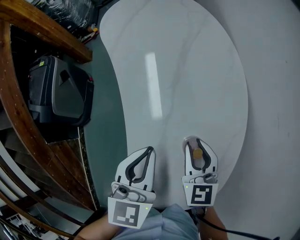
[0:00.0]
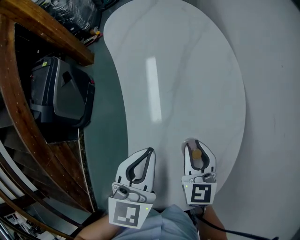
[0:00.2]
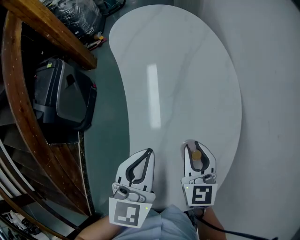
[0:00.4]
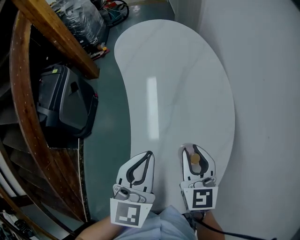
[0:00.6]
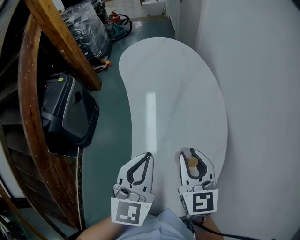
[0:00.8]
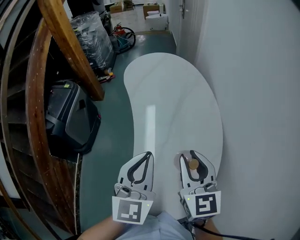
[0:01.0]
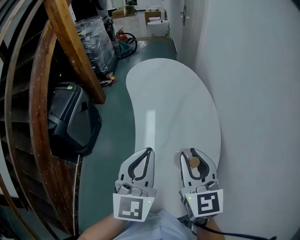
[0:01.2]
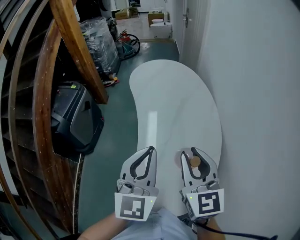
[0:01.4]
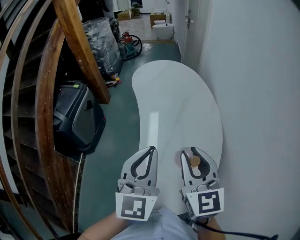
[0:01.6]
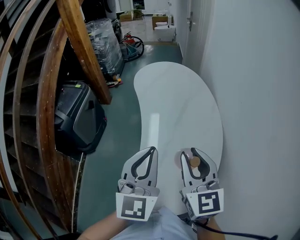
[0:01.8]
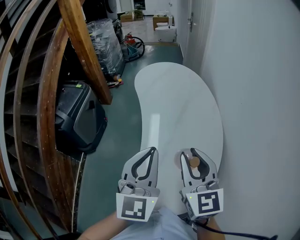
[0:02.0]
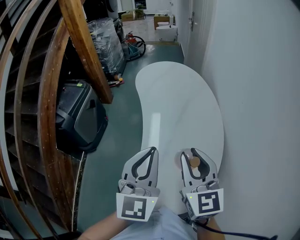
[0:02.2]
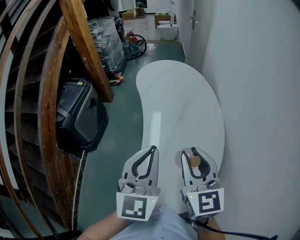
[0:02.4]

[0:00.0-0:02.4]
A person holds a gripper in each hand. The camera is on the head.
0:00.0 to 0:01.2: Both grippers move upward, some 15 cm. The left gripper changes its angle by approximately 30 degrees.
0:01.2 to 0:02.4: There are only small adjustments of the grippers.

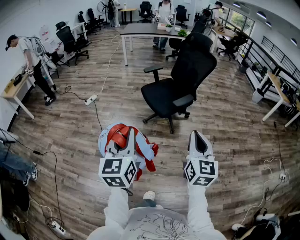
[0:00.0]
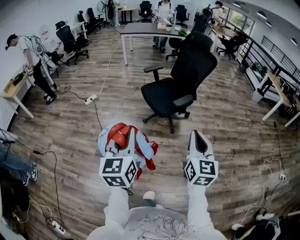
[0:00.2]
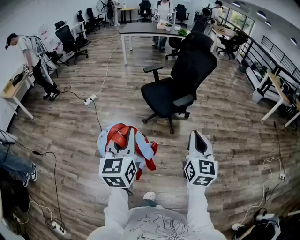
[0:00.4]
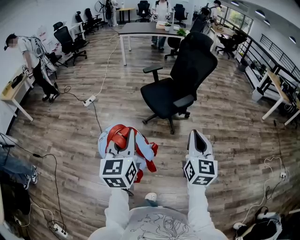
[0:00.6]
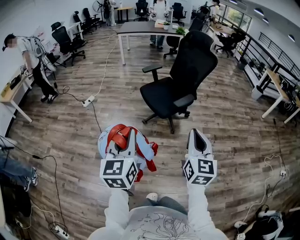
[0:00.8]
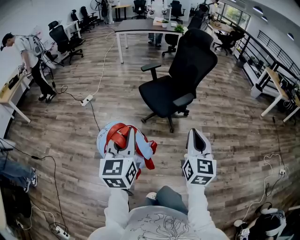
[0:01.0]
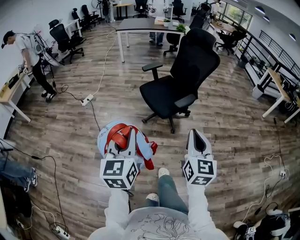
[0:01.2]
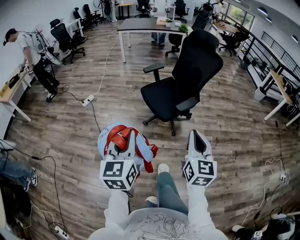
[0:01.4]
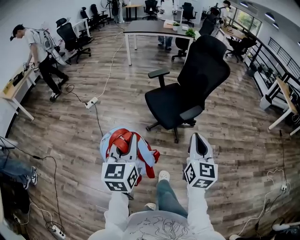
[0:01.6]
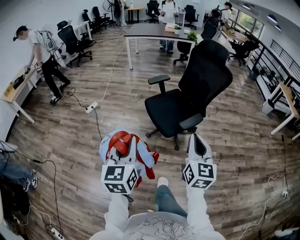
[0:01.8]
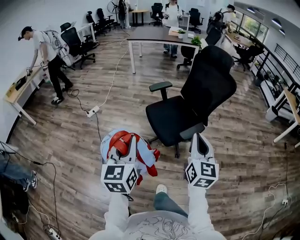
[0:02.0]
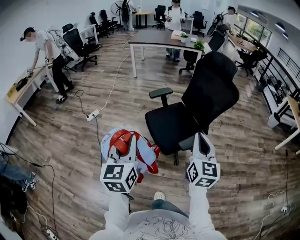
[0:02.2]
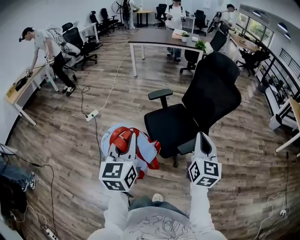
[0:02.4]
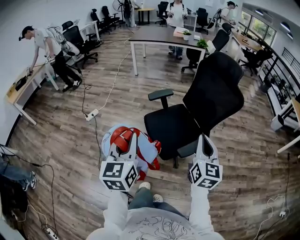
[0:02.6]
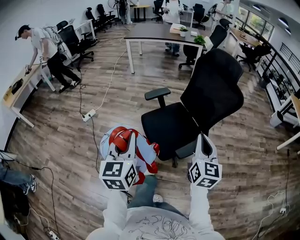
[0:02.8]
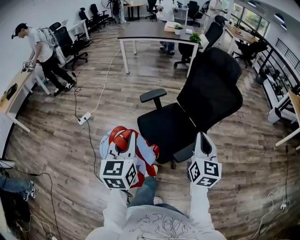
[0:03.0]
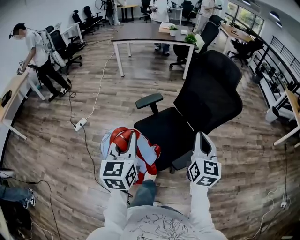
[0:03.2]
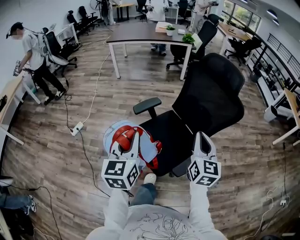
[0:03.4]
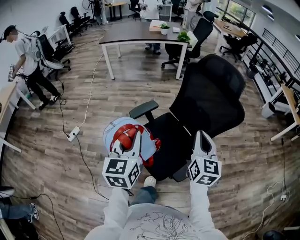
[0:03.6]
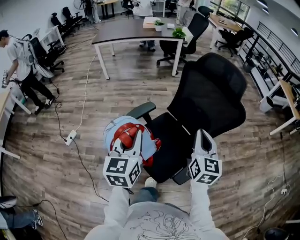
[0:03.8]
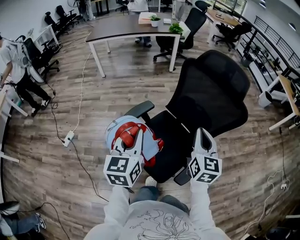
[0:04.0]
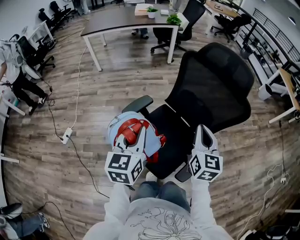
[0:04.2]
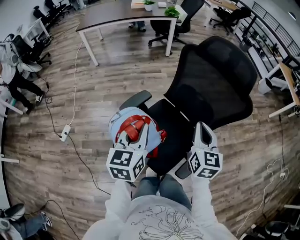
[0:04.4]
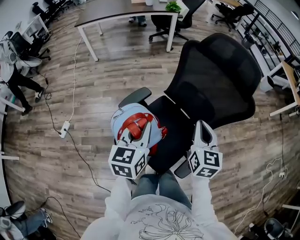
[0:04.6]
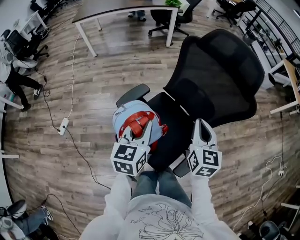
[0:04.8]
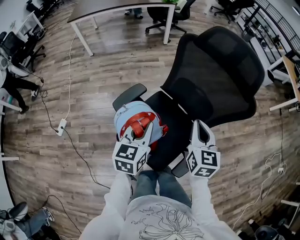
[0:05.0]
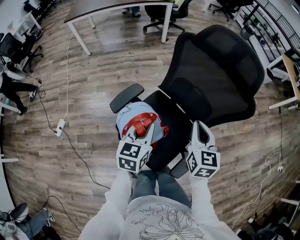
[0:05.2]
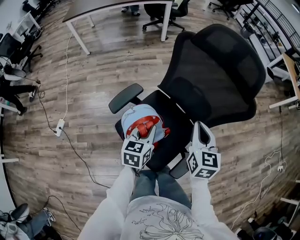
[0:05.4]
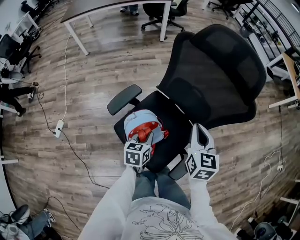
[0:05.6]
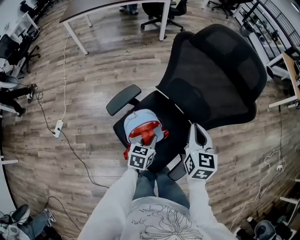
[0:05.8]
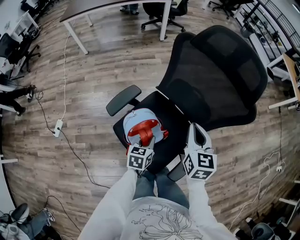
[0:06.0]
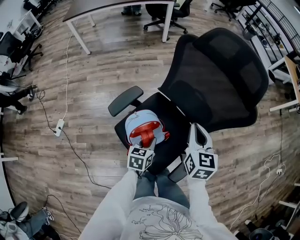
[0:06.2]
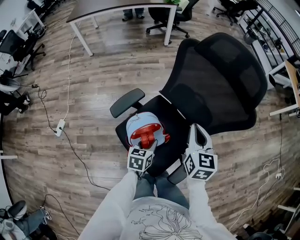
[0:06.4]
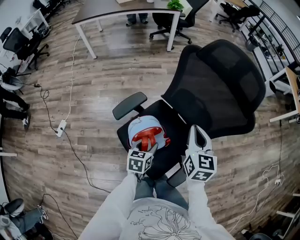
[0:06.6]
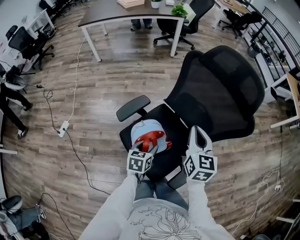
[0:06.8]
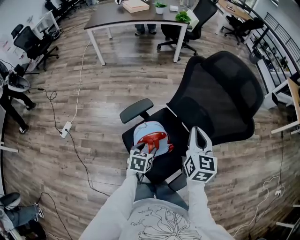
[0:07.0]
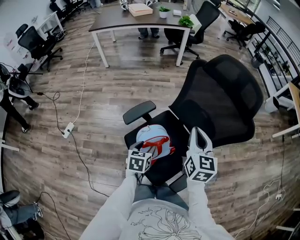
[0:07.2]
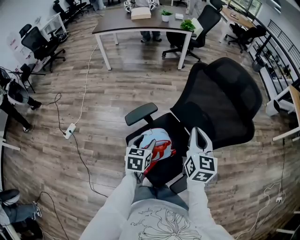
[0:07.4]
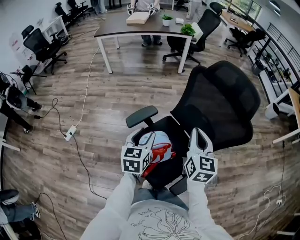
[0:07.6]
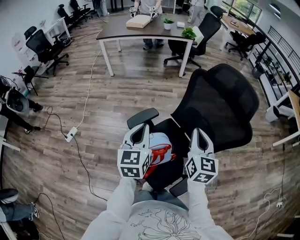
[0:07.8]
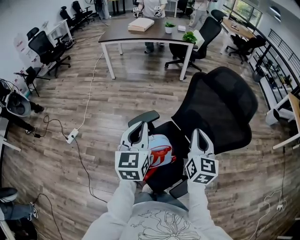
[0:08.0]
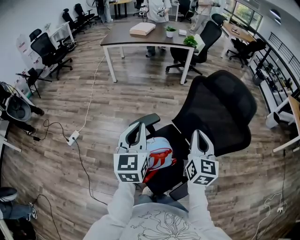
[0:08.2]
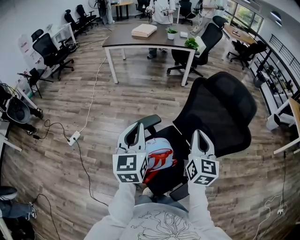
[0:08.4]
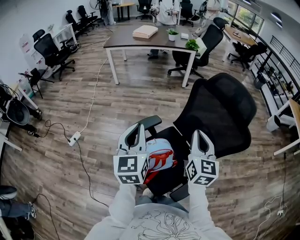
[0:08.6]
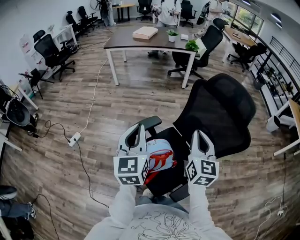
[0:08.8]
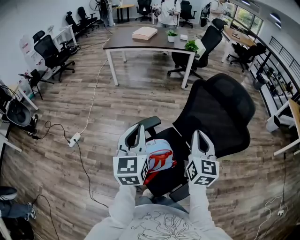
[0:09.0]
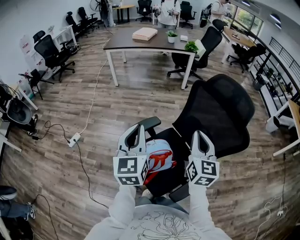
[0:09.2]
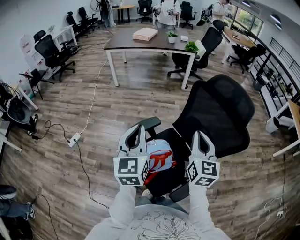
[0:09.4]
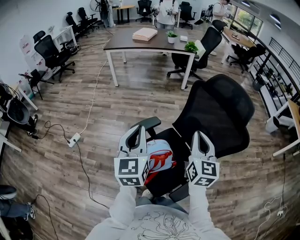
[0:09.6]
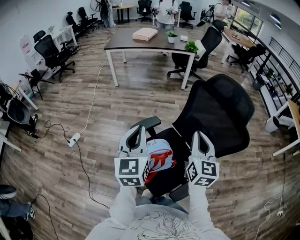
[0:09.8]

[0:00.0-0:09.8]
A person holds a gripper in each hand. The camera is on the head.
0:00.0 to 0:01.4: Both grippers move forward, some 10 cm.
0:01.4 to 0:02.8: Both grippers move forward, about 35 cm.
0:02.8 to 0:04.2: Both grippers travel together forward, approximately 30 cm. The left gripper changes its angle by about 20 degrees.
0:04.2 to 0:05.6: The right gripper travels downward and forward by about 10 cm; the left gripper goes roughly 25 cm downward, and swivels approximately 30 degrees.
0:05.6 to 0:07.0: The right gripper travels upward by about 5 cm; the left gripper opens up.
0:07.0 to 0:08.4: The right gripper travels upward by roughly 10 cm. The left gripper moves upward, some 30 cm, points its fingers some 40 degrees further upward, and closes its fingers.
0:08.4 to 0:09.8: The grippers move only a little.

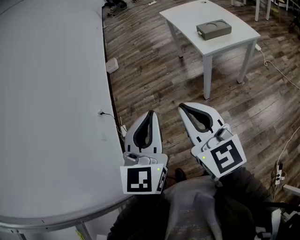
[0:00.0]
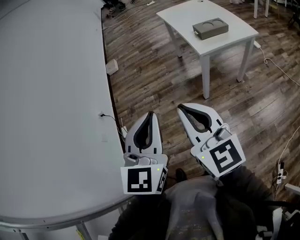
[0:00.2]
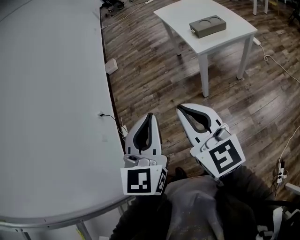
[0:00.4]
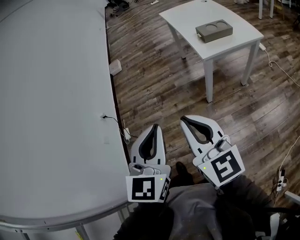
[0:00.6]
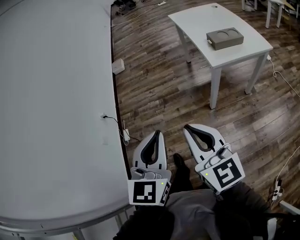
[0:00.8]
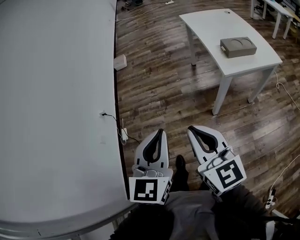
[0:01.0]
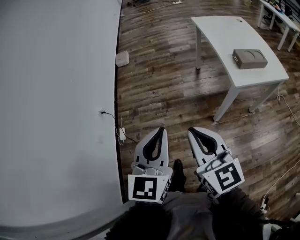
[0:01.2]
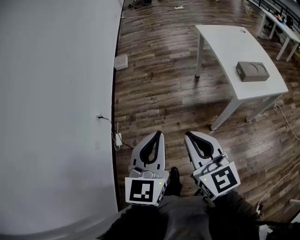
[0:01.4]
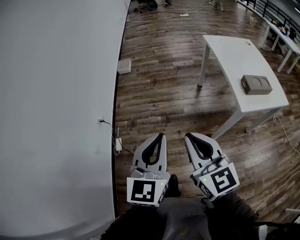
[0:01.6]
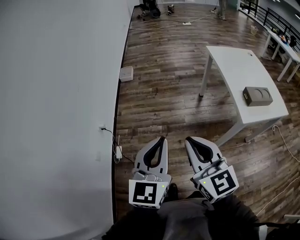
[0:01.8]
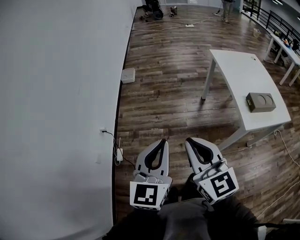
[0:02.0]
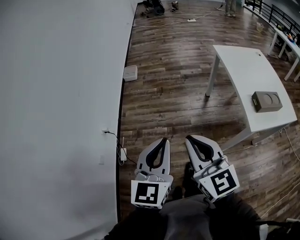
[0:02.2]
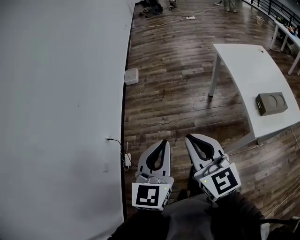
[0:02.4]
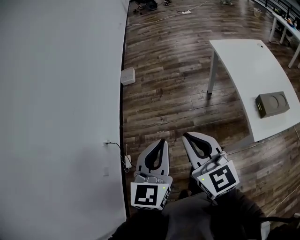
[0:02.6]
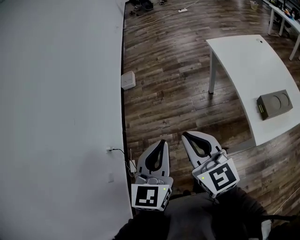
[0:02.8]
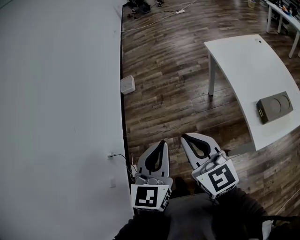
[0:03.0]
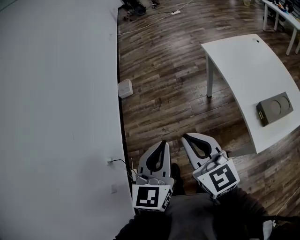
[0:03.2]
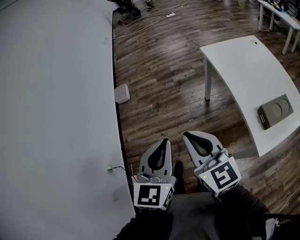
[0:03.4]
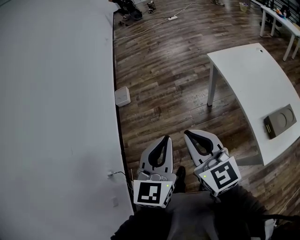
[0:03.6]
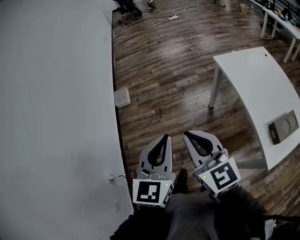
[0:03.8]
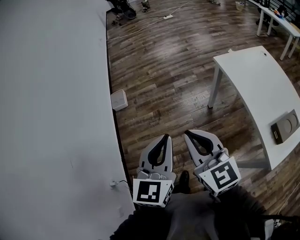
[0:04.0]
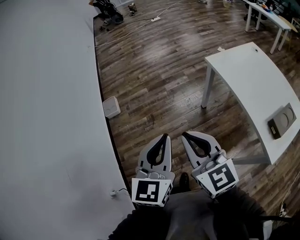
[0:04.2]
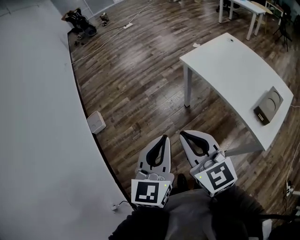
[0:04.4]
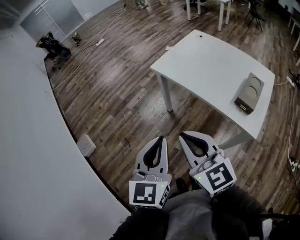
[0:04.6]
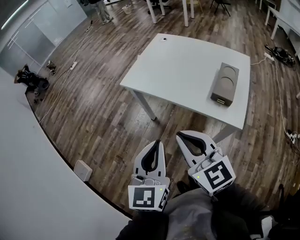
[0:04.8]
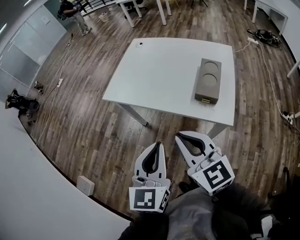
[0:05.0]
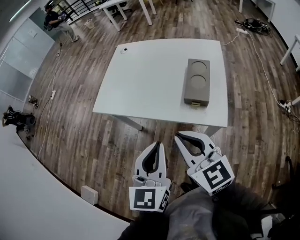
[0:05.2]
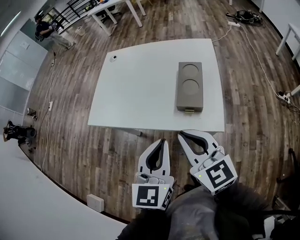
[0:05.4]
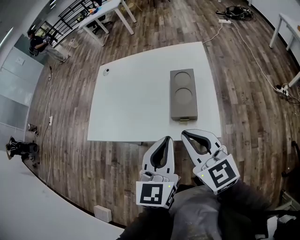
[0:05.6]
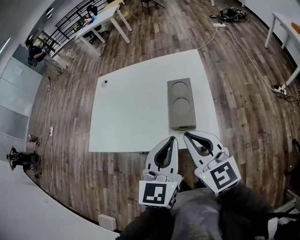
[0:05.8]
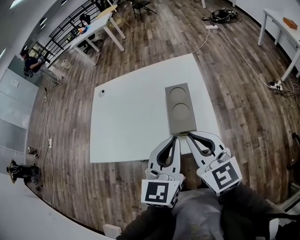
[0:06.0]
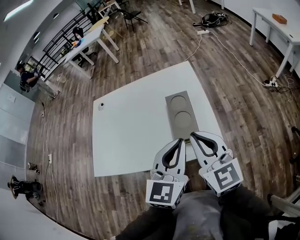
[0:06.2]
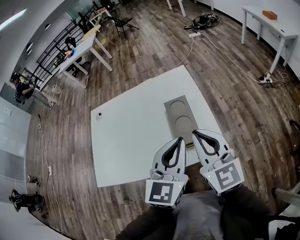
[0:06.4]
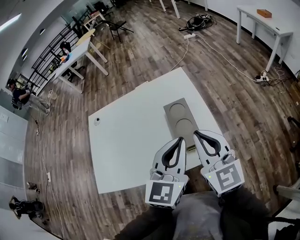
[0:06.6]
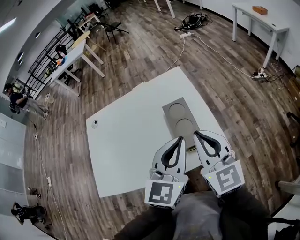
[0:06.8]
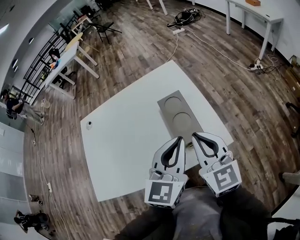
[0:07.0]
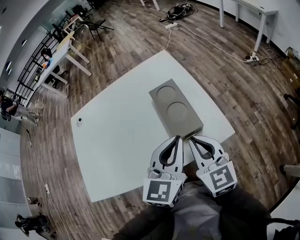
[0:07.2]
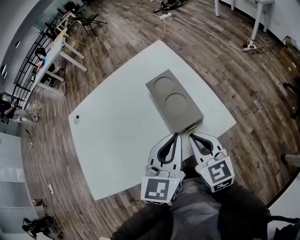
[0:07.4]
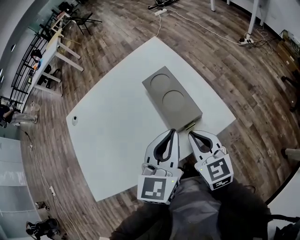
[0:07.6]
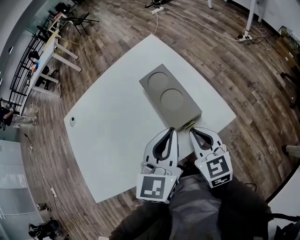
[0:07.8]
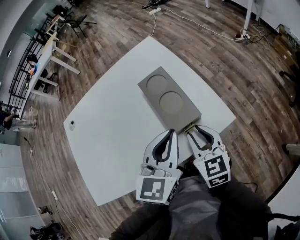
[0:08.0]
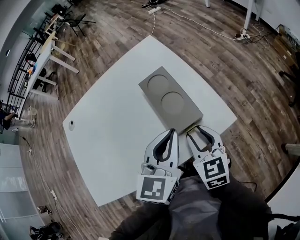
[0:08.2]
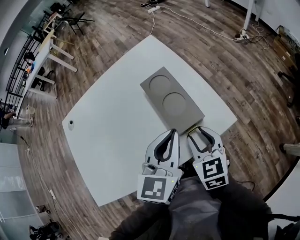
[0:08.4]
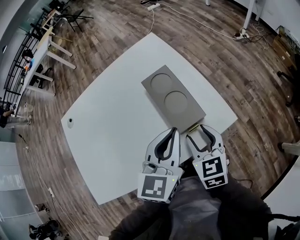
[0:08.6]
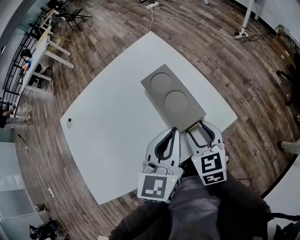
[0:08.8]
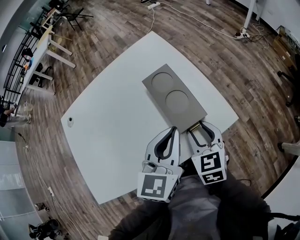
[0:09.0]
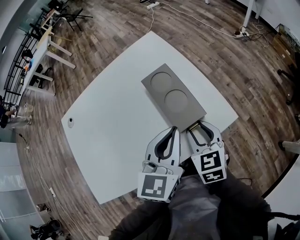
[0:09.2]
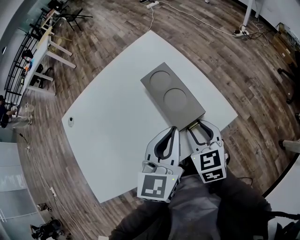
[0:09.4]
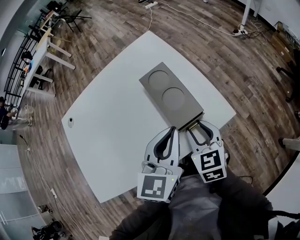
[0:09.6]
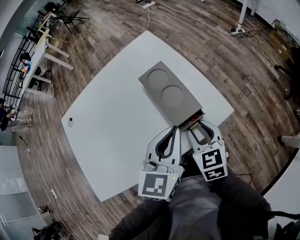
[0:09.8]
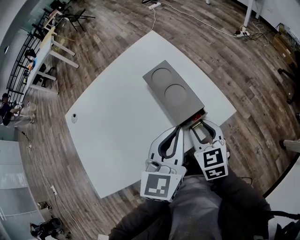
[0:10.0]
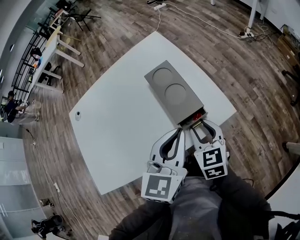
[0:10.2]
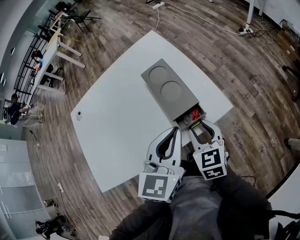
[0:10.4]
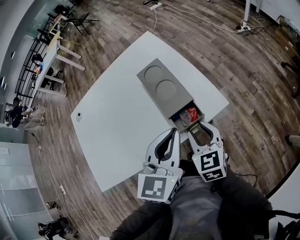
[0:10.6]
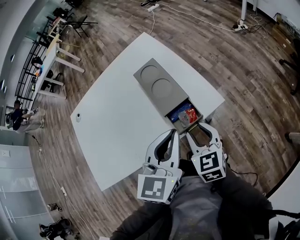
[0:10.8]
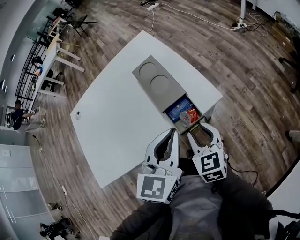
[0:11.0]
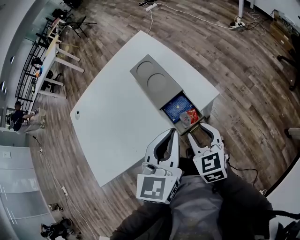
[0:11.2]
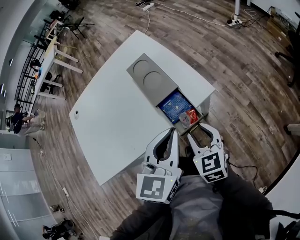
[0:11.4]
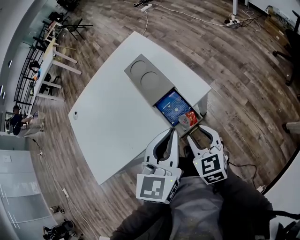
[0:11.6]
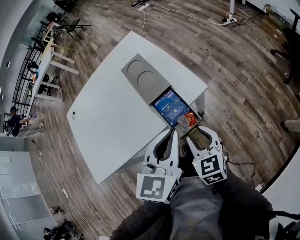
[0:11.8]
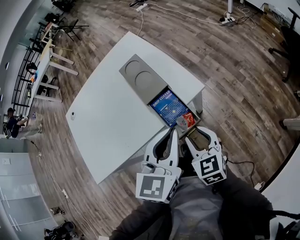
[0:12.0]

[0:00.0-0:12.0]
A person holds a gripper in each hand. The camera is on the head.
0:00.0 to 0:01.6: Both grippers travel together forward and to the left, about 25 cm.
0:01.6 to 0:03.0: The right gripper moves forward, roughly 25 cm; the left gripper goes roughly 30 cm forward and to the right.
0:03.0 to 0:04.4: The right gripper shifts by about 25 cm, and rotates roughly 30 degrees. The left gripper moves some 25 cm, and changes its angle by approximately 30 degrees.
0:04.4 to 0:06.0: The two grippers travel together, roughly 50 cm. The right gripper turns by roughly 60 degrees; the left gripper changes its angle by some 60 degrees.
0:06.0 to 0:07.6: The left gripper moves downward, some 10 cm, and rotates some 30 degrees, while the right gripper shifts approximately 20 cm downward, and changes its angle by about 30 degrees.
0:07.6 to 0:09.0: The right gripper opens up.
0:09.0 to 0:10.4: The left gripper shifts by about 5 cm.
0:10.4 to 0:12.0: The grippers both shift backward and to the right by roughly 15 cm.
